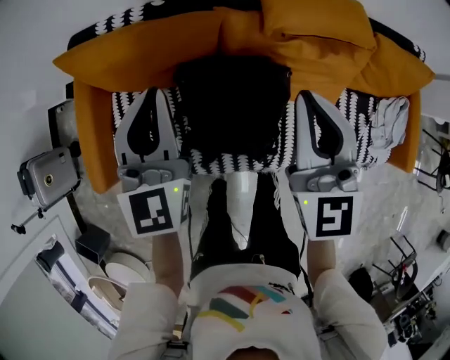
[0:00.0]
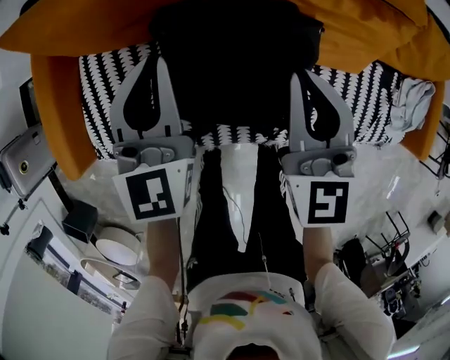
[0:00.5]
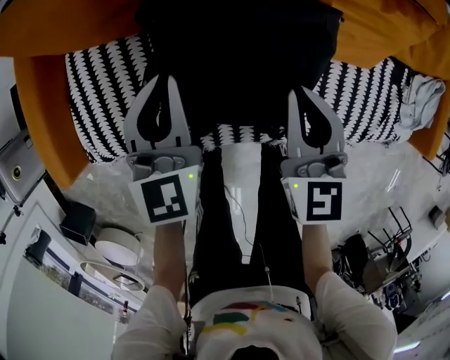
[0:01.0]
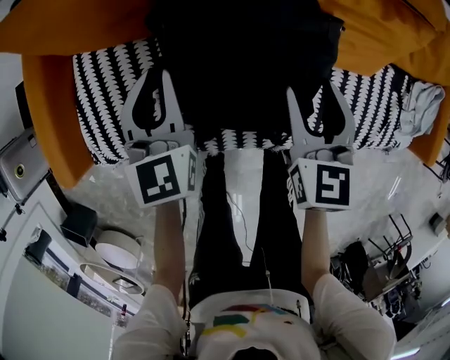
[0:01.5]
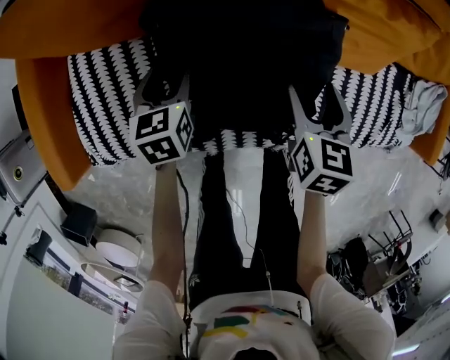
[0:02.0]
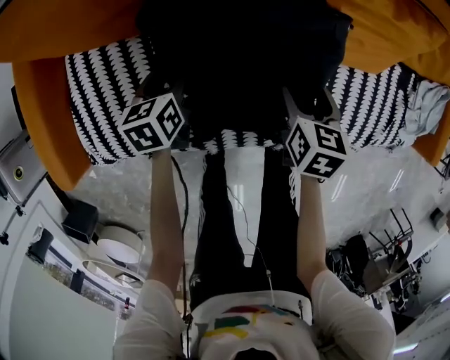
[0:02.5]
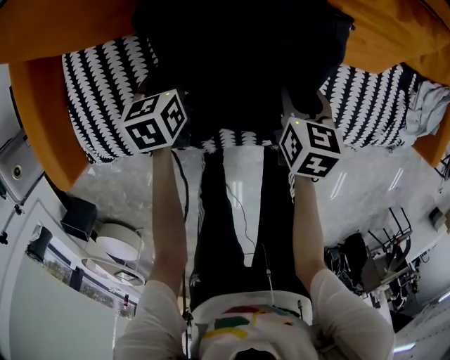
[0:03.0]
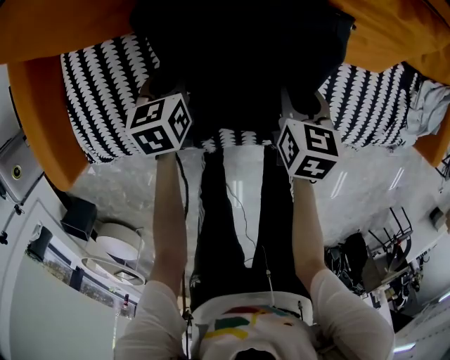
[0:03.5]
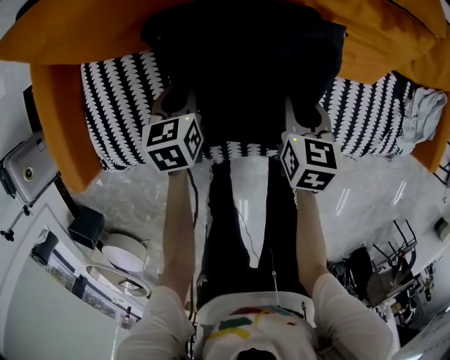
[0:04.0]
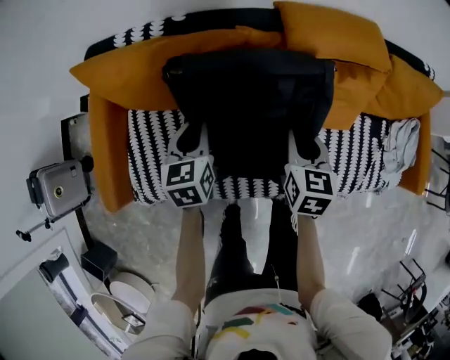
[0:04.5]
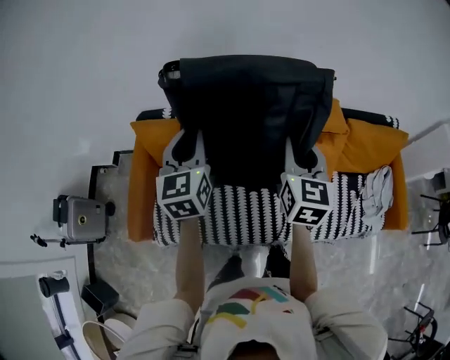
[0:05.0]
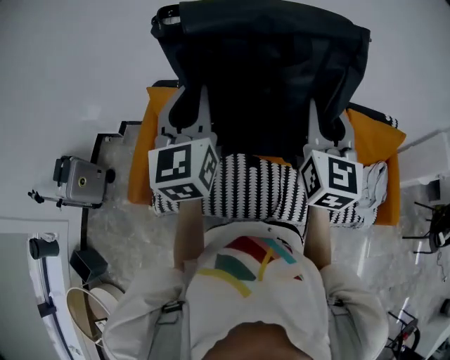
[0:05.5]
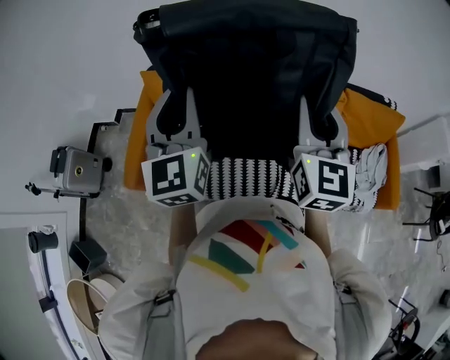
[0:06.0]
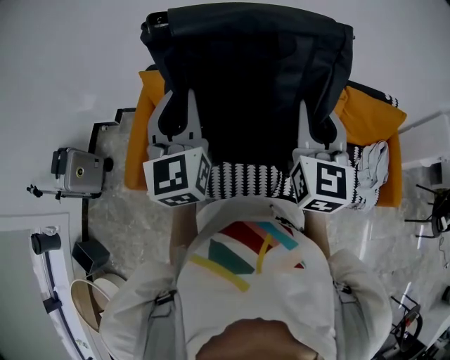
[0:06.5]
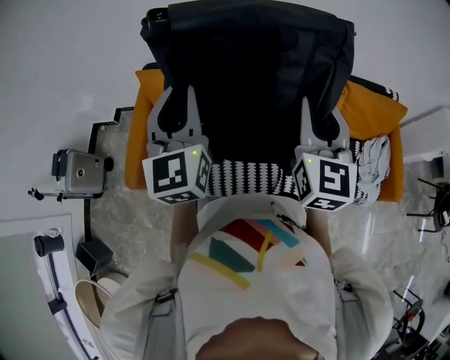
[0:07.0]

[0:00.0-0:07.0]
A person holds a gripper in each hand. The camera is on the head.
0:00.0 to 0:02.0: The two grippers go about 40 cm downward. The right gripper tips its fingers downward by roughly 40 degrees, and opens its fingers; the left gripper points its fingers approximately 40 degrees further downward, and opens its fingers.
0:02.0 to 0:03.5: The right gripper goes approximately 5 cm downward, and closes up. The left gripper closes its fingers.
0:03.5 to 0:05.0: Both grippers move upward, some 50 cm. The left gripper tips its fingers upward by about 40 degrees, while the right gripper tilts its fingers approximately 40 degrees upward.
0:05.0 to 0:07.0: Both grippers move backward and upward, about 15 cm.

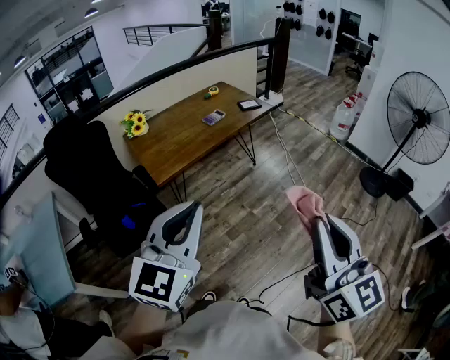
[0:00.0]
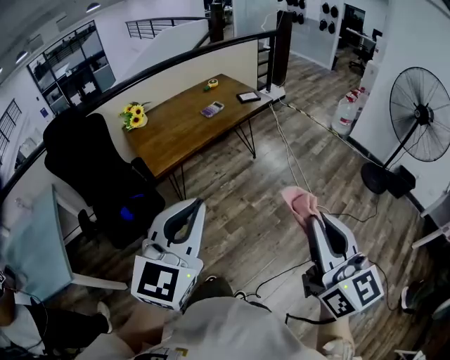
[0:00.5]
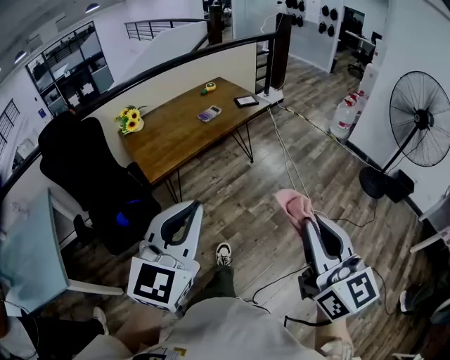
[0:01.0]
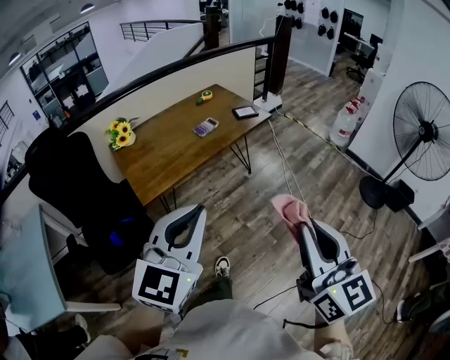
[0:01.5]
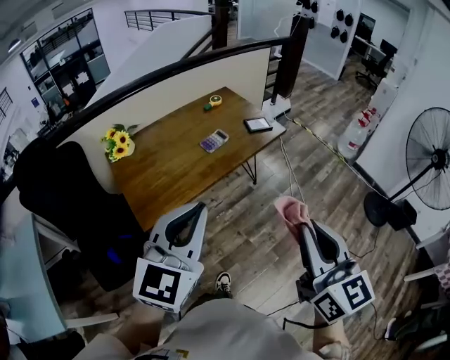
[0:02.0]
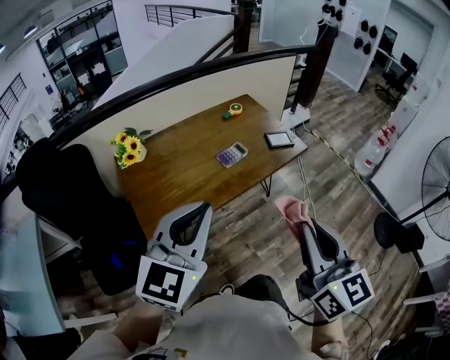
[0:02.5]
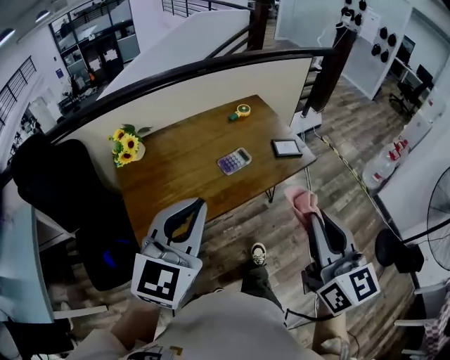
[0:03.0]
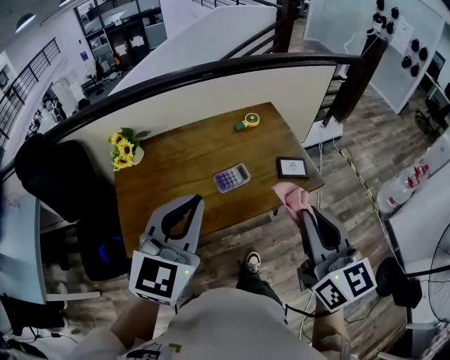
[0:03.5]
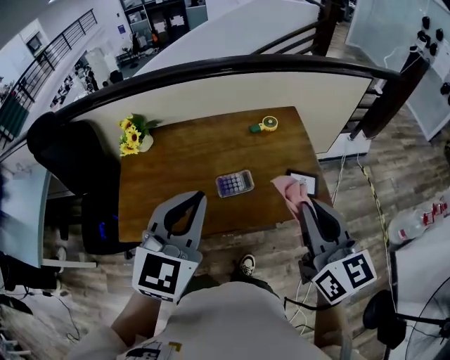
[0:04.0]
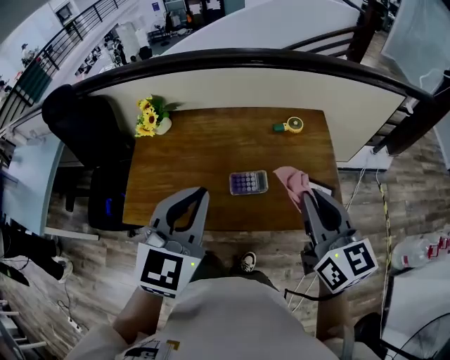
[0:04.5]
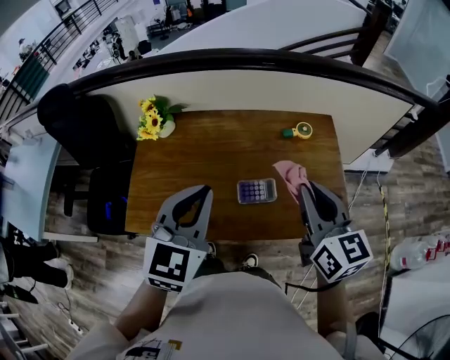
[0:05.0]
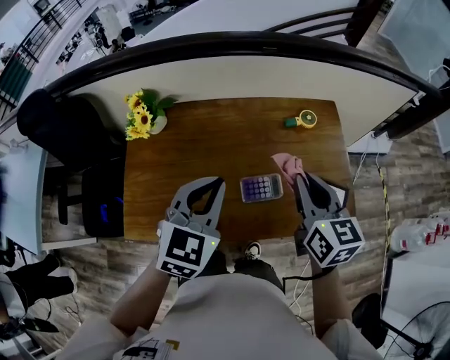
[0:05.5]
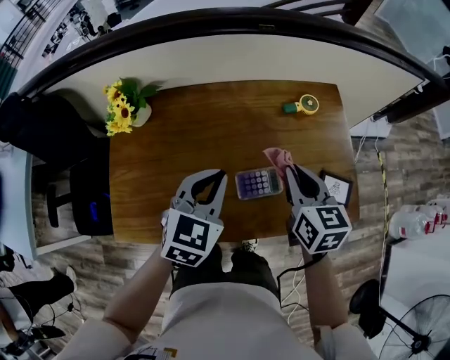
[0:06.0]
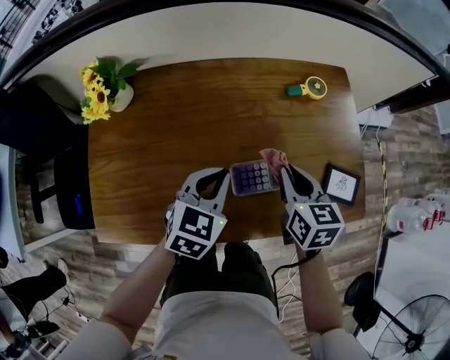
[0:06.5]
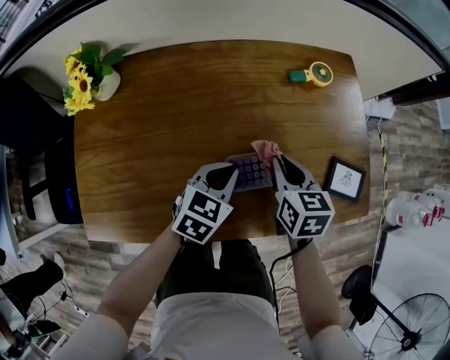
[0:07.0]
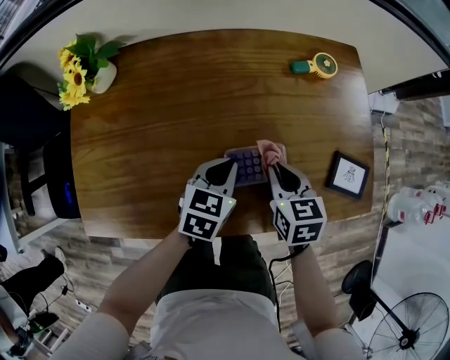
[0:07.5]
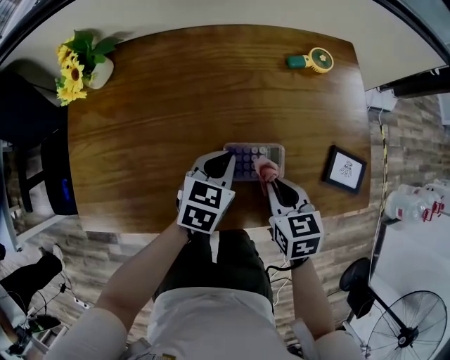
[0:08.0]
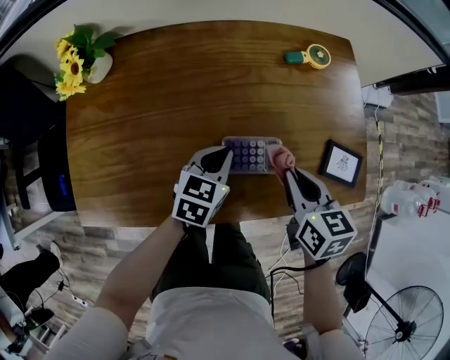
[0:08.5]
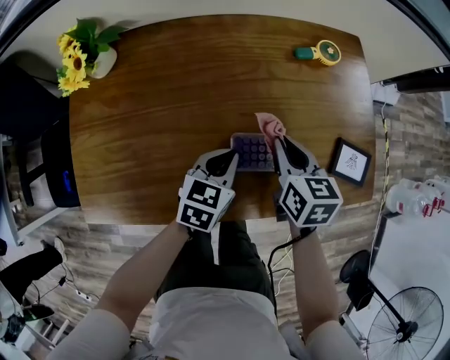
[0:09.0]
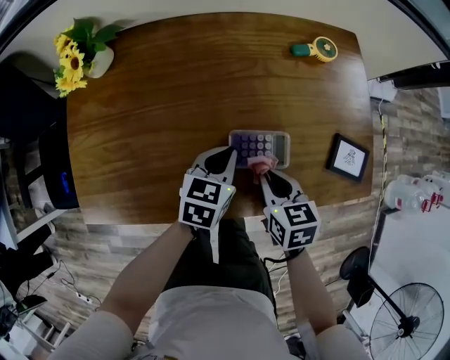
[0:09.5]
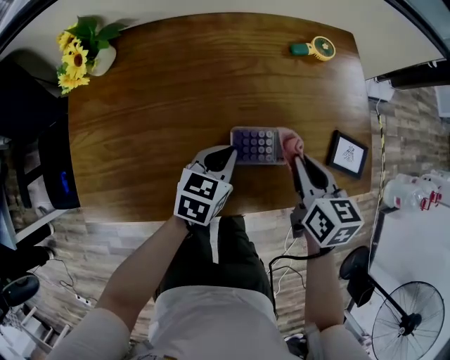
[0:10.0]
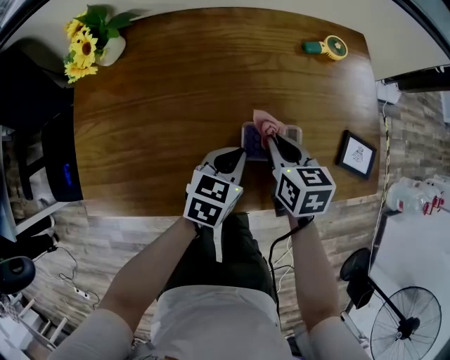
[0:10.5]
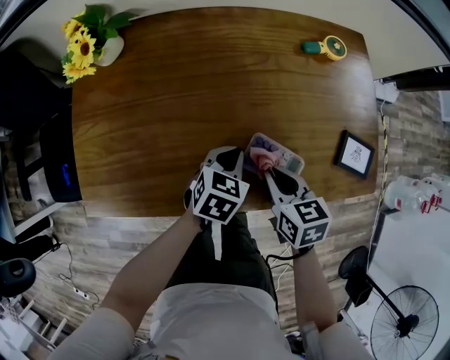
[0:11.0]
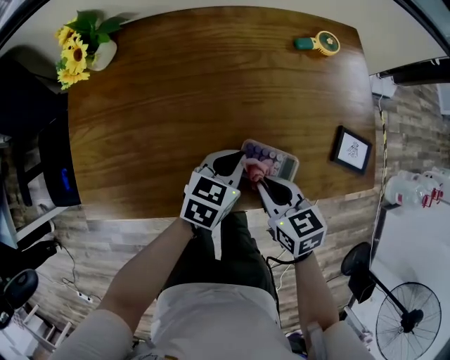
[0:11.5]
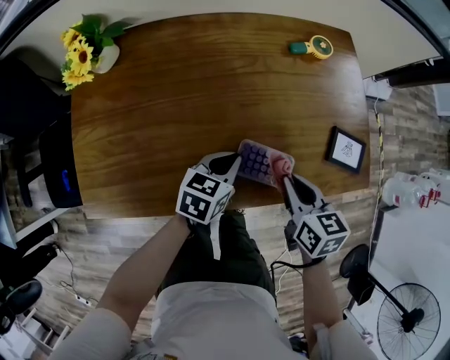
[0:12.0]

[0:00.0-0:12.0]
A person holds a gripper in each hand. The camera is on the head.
0:00.0 to 0:02.0: The grippers both shift forward by roughly 35 cm.
0:02.0 to 0:04.0: The pair of grippers is taken some 50 cm. The right gripper rotates approximately 30 degrees; the left gripper turns by roughly 30 degrees.
0:04.0 to 0:06.0: The left gripper shifts roughly 30 cm downward and forward, and swivels approximately 20 degrees; the right gripper goes about 35 cm forward and downward, and turns by approximately 20 degrees.
0:06.0 to 0:08.0: Both grippers travel together downward, approximately 20 cm. The left gripper turns by roughly 20 degrees, while the right gripper turns by roughly 20 degrees.
0:08.0 to 0:10.0: The right gripper moves forward and backward over some 10 cm, changing direction 2 times.
0:10.0 to 0:12.0: The right gripper moves backward, approximately 5 cm.

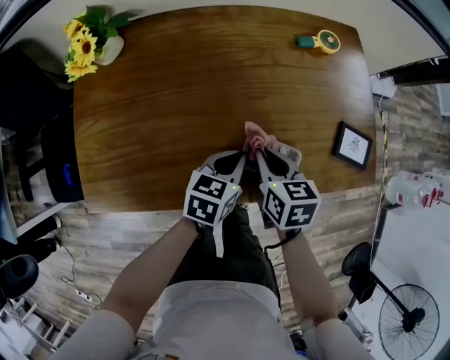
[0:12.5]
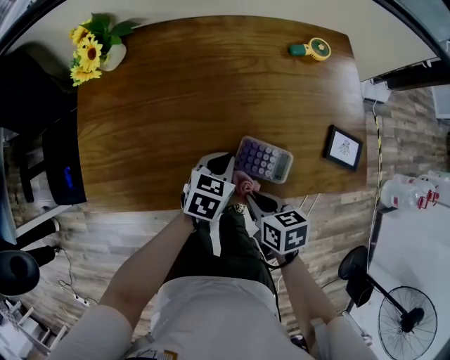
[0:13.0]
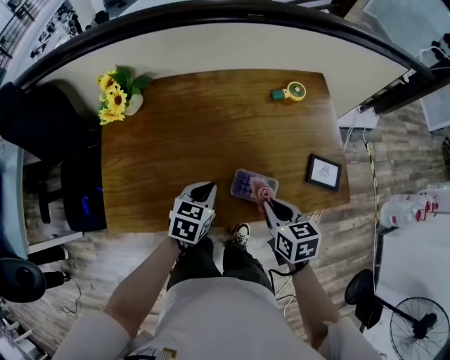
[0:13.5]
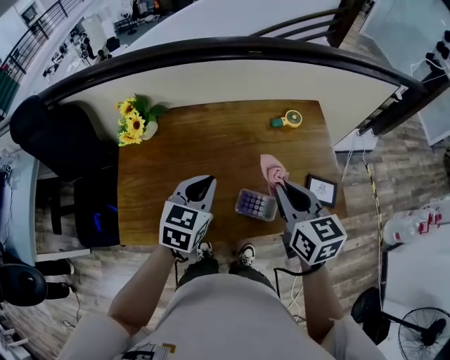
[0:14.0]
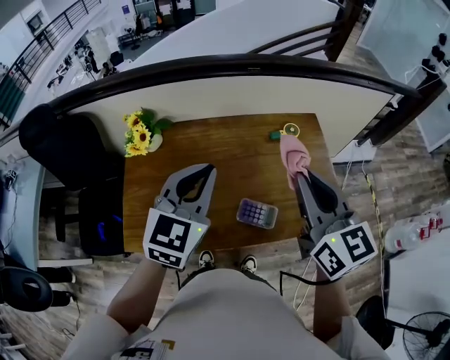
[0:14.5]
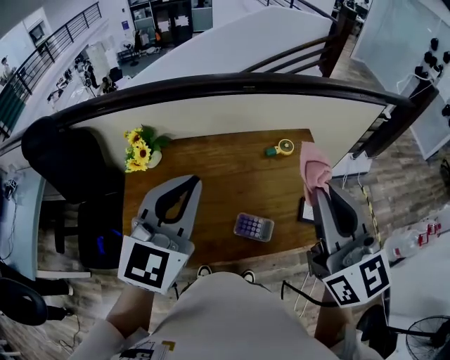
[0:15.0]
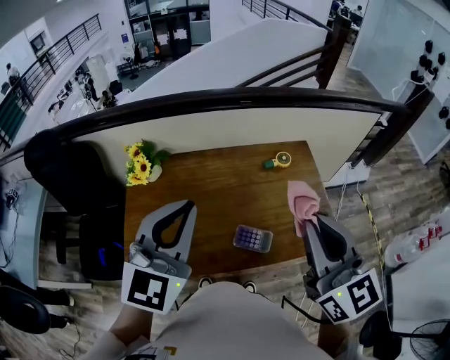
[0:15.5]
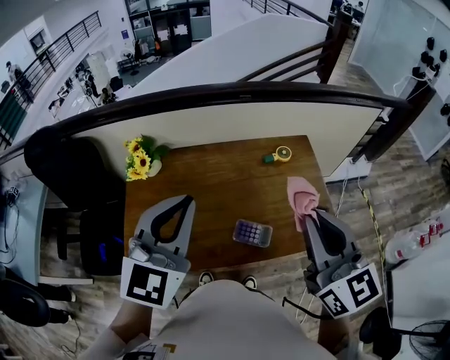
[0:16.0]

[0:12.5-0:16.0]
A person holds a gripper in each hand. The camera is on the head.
0:12.5 to 0:14.5: The grippers both shift upward by approximately 40 cm. The left gripper swivels roughly 40 degrees, while the right gripper tips its fingers upward by approximately 40 degrees.
0:14.5 to 0:16.0: The left gripper moves upward and backward, roughly 10 cm, while the right gripper goes some 5 cm backward.

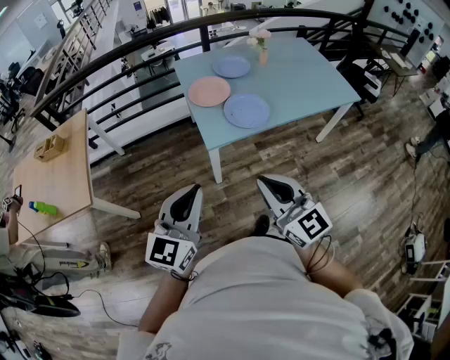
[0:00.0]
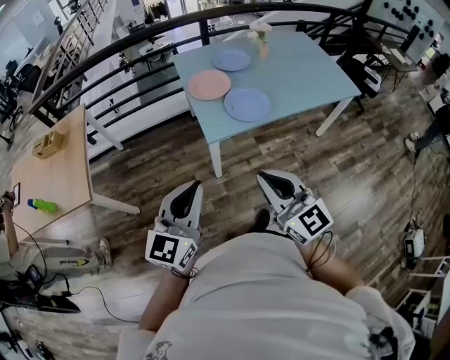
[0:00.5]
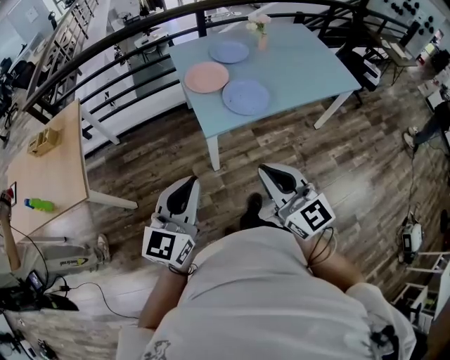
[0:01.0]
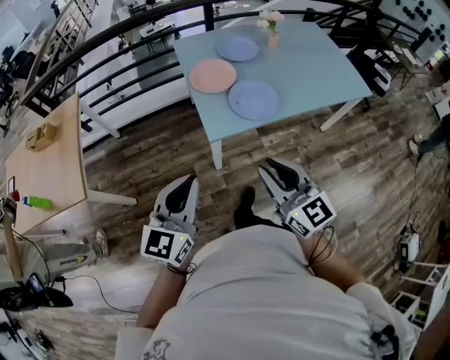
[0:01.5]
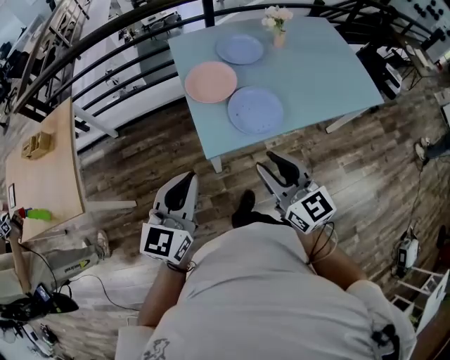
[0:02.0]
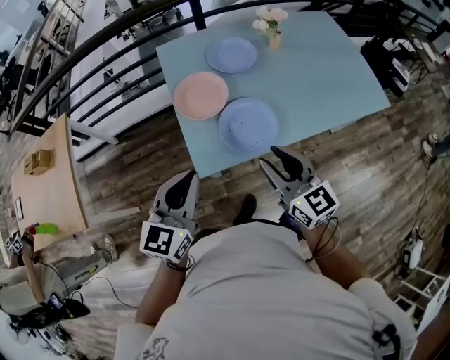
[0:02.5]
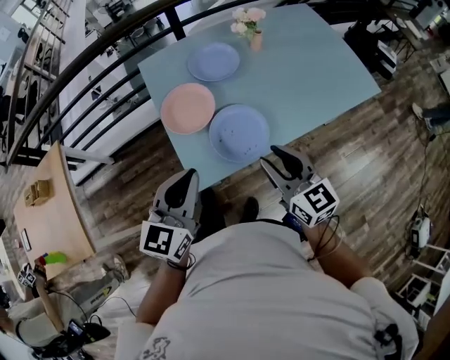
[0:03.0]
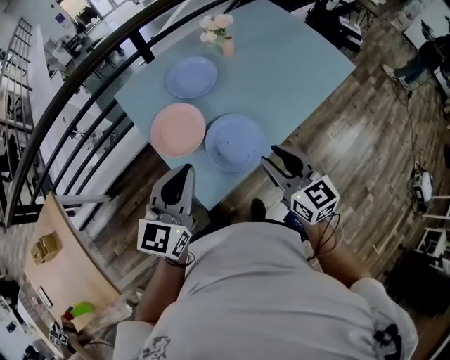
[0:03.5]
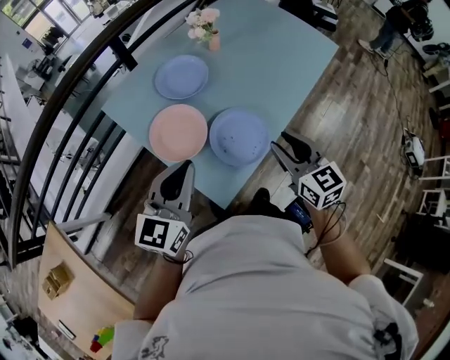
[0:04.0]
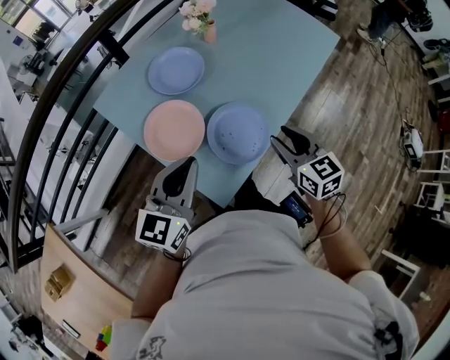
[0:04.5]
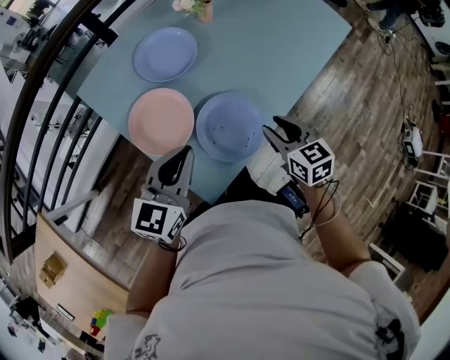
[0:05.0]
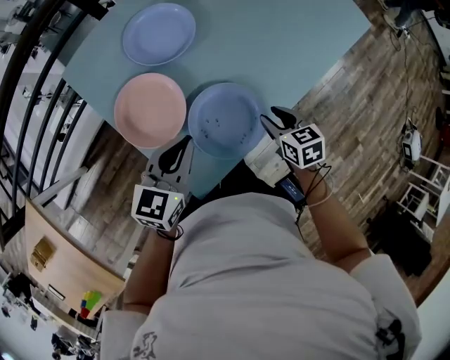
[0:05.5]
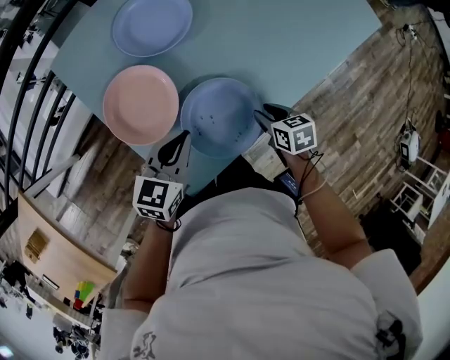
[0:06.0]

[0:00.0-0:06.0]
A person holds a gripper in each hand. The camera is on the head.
0:00.0 to 0:02.0: The two grippers go some 20 cm forward. The right gripper opens.
0:02.0 to 0:04.0: The right gripper moves roughly 20 cm, and rotates roughly 40 degrees. Meanwhile the left gripper shifts by some 30 cm, and swivels approximately 30 degrees.
0:04.0 to 0:06.0: The left gripper is displaced downward and forward by about 25 cm, and swivels approximately 30 degrees, while the right gripper is displaced downward by roughly 30 cm, and points its fingers some 40 degrees further downward.
